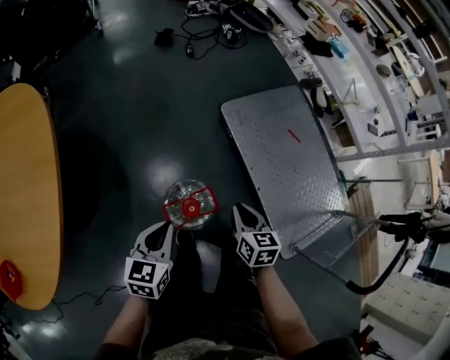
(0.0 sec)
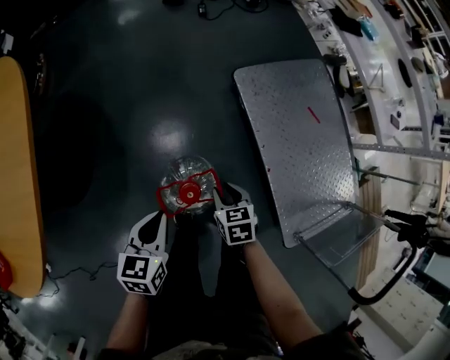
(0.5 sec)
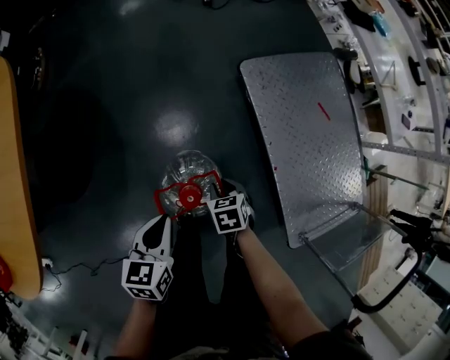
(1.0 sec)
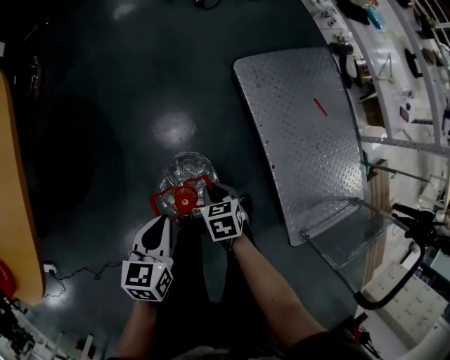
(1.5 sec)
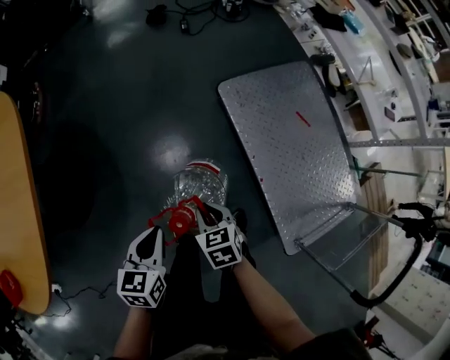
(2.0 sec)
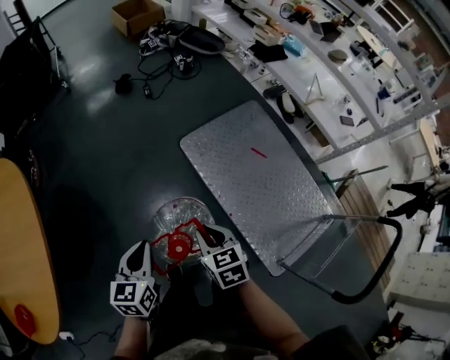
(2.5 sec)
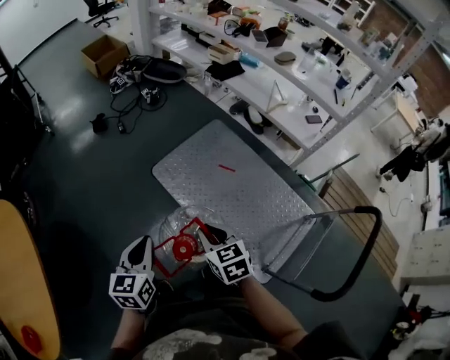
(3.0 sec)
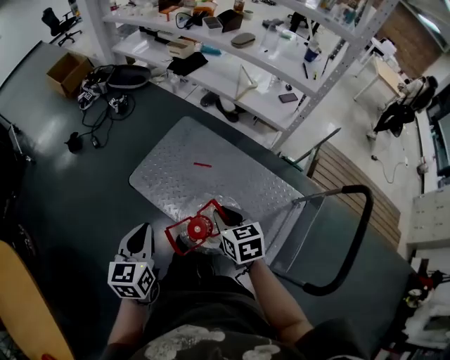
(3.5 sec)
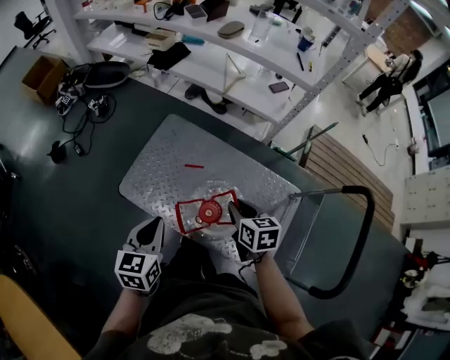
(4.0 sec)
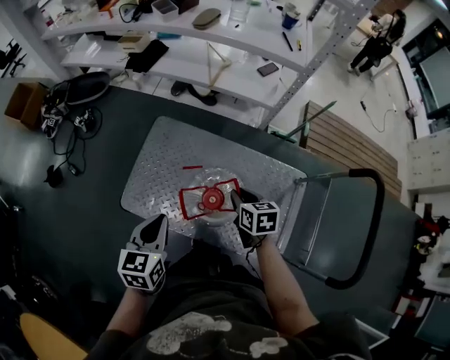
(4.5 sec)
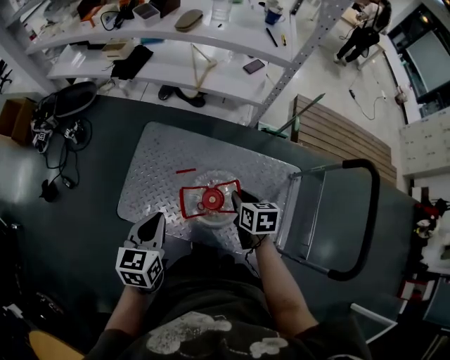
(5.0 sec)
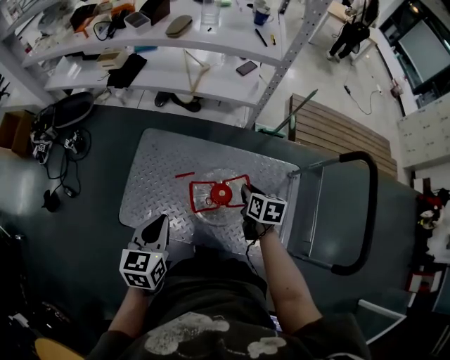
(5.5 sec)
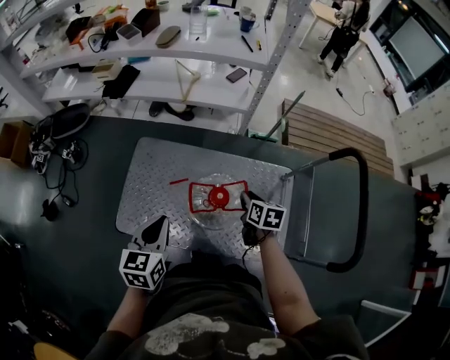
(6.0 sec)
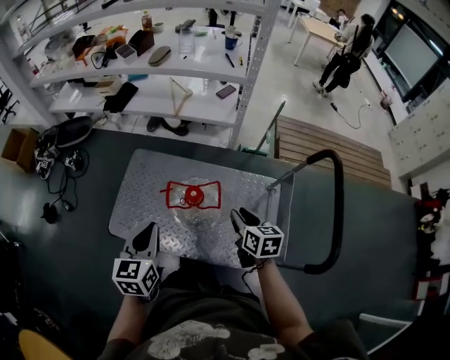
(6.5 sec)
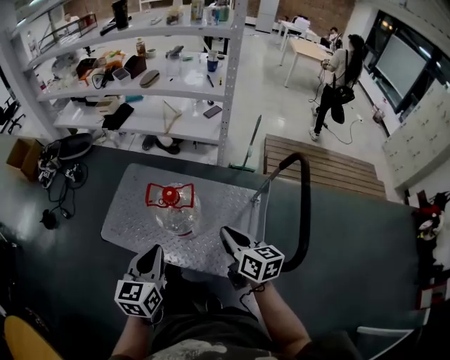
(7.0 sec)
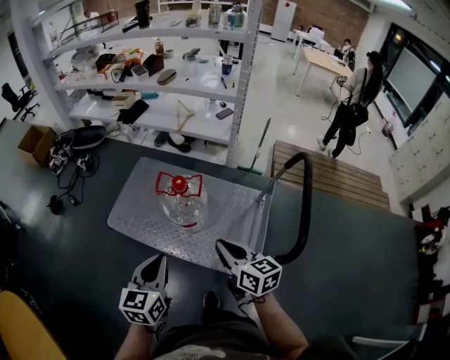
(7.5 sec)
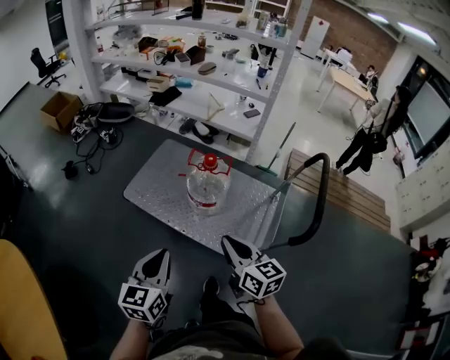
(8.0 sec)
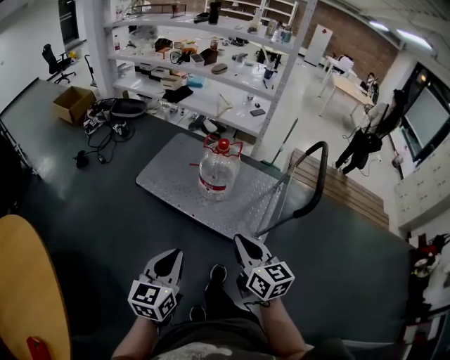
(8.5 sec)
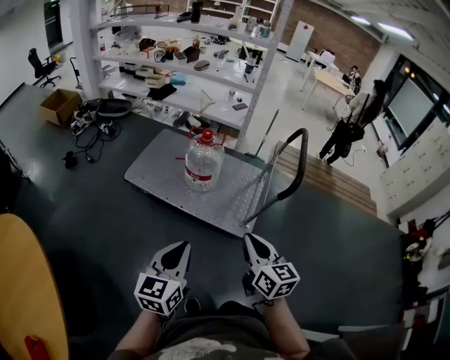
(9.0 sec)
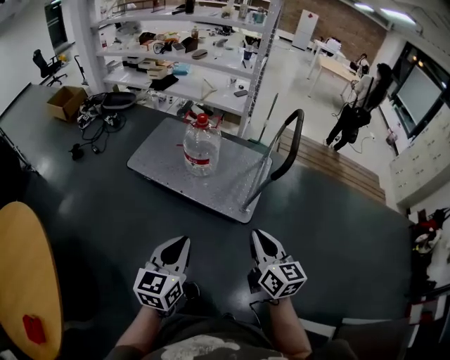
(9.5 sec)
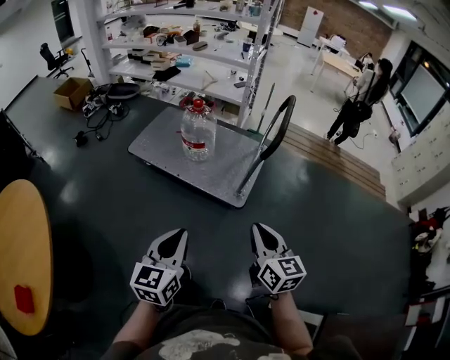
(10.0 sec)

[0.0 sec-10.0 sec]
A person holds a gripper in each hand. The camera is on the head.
0.0 sec to 2.0 sec: The left gripper heads downward, covering approximately 5 cm, while the right gripper is displaced downward and to the left by about 10 cm, and rotates roughly 30 degrees.
2.0 sec to 4.0 sec: The pair of grippers is taken approximately 50 cm. The right gripper turns by some 60 degrees. Meanwhile the left gripper turns by approximately 40 degrees.
4.0 sec to 6.0 sec: The left gripper travels forward by some 10 cm. Meanwhile the right gripper travels to the right, downward and forward by about 15 cm, and turns by approximately 30 degrees.
6.0 sec to 8.0 sec: Both grippers are carried backward, approximately 40 cm. The right gripper shifts some 20 cm upward, and points its fingers some 30 degrees further upward; the left gripper rotates about 20 degrees.
8.0 sec to 10.0 sec: Both grippers travel together backward and to the right, some 40 cm.

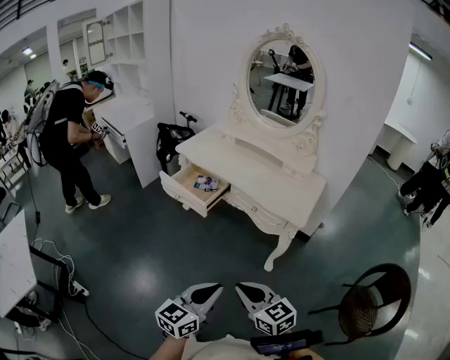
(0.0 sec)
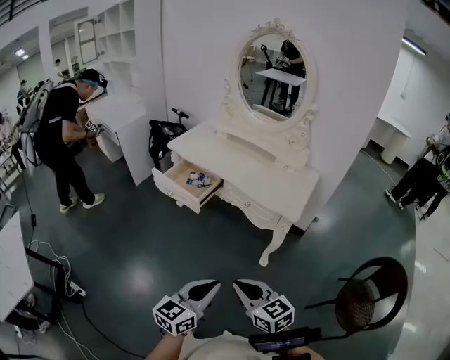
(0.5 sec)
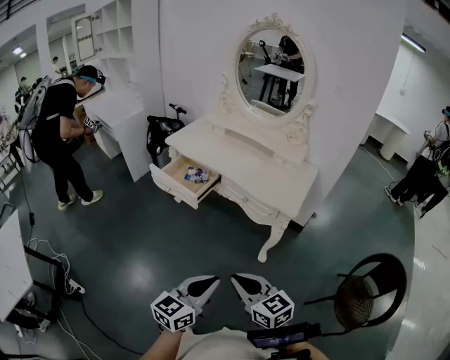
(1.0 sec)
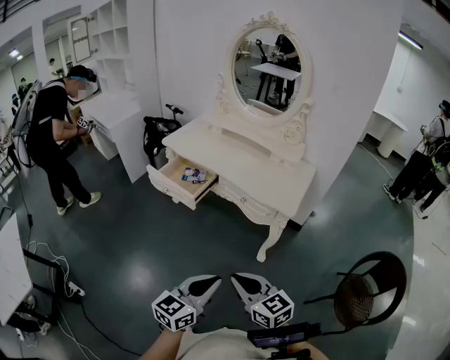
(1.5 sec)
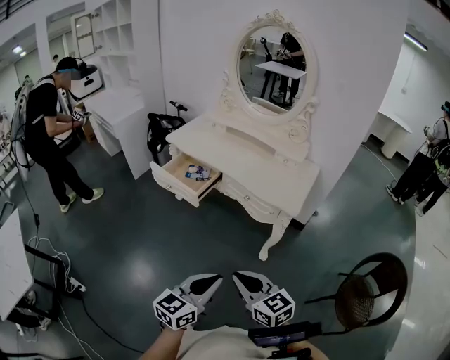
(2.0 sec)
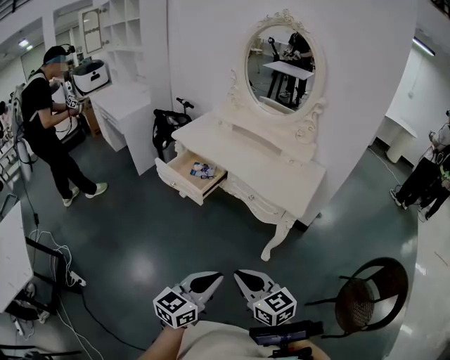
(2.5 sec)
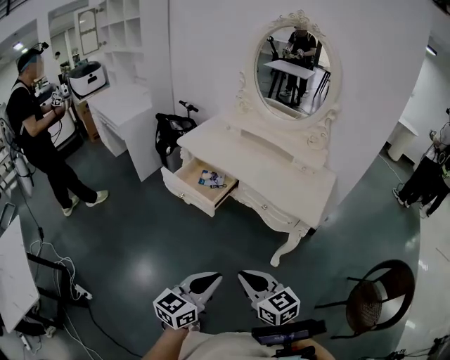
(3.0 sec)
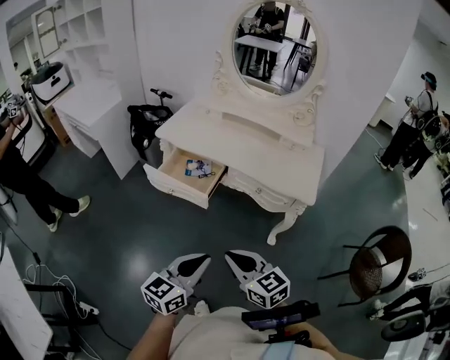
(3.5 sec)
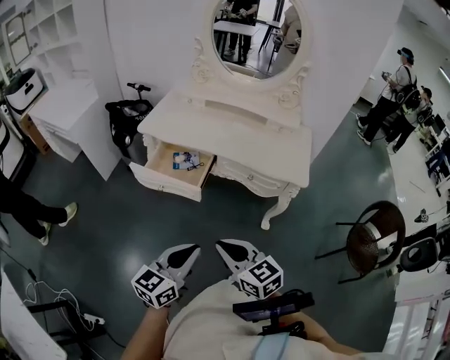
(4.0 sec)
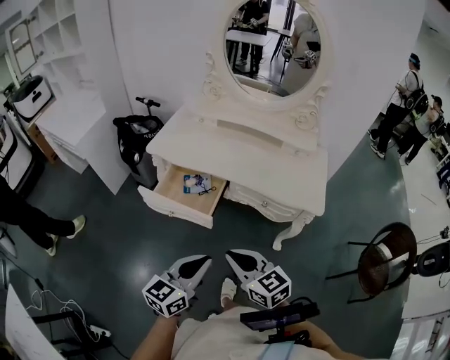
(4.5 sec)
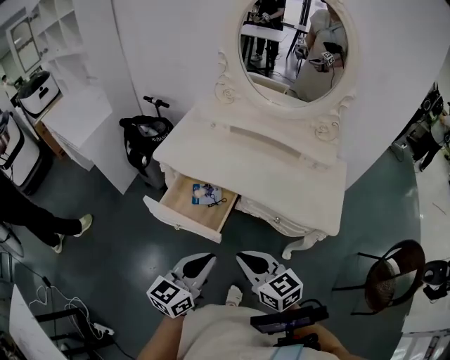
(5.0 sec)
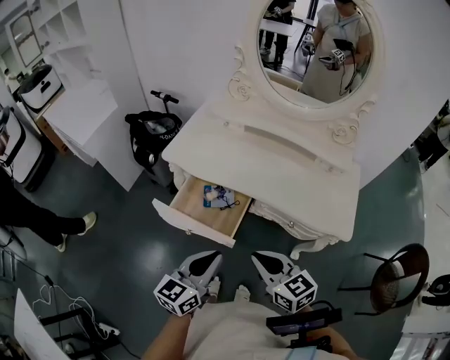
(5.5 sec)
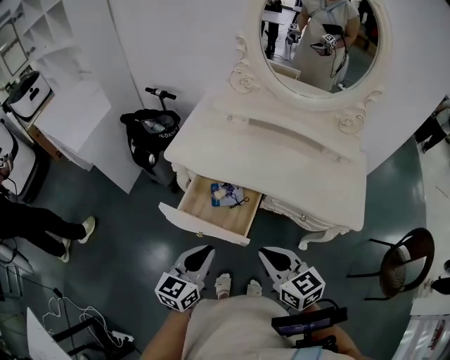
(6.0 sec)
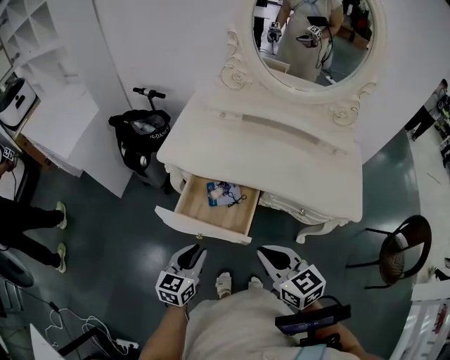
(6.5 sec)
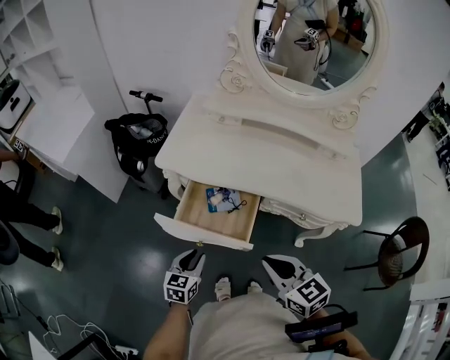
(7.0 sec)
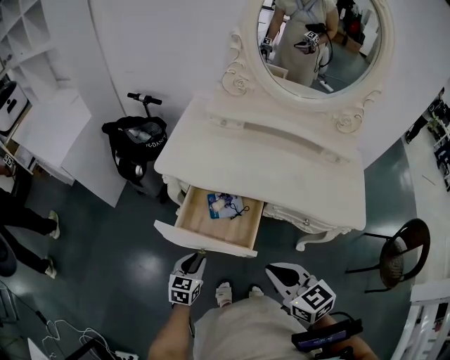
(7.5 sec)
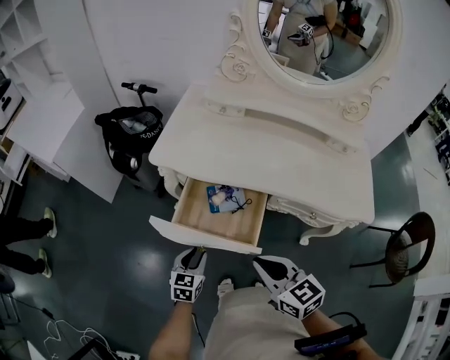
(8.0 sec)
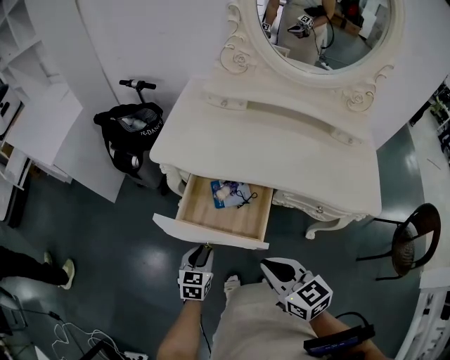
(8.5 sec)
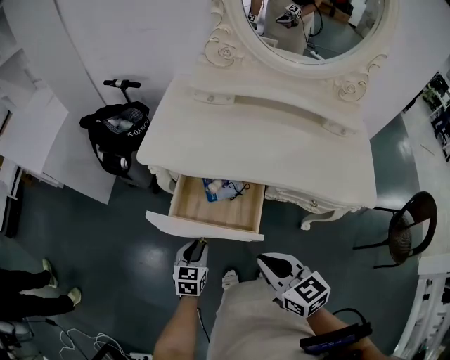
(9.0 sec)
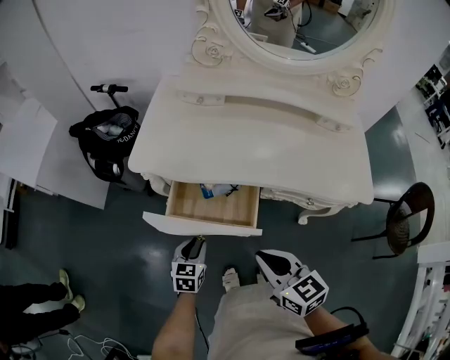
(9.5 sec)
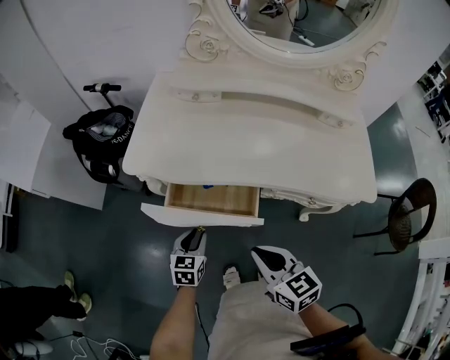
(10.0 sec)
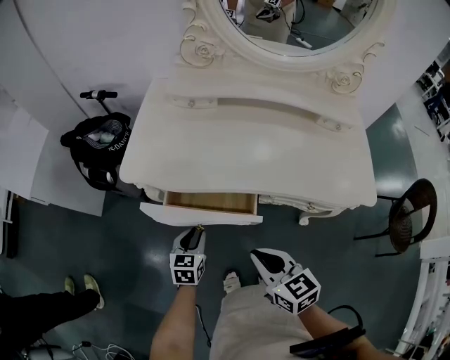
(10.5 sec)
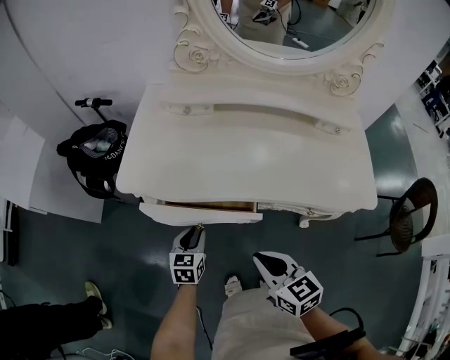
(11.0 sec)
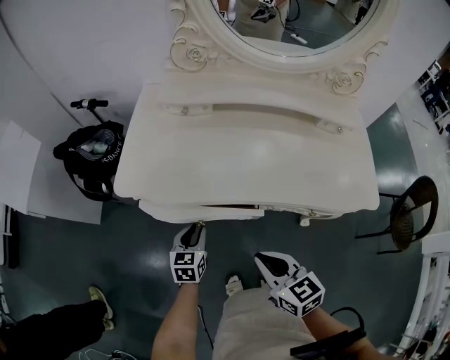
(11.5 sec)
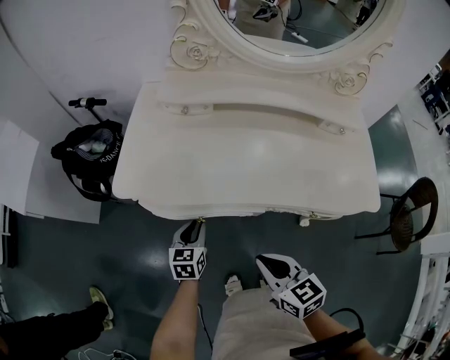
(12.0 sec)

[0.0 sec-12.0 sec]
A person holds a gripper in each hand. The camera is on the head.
0.0 sec to 2.0 sec: The grippers move only a little.
2.0 sec to 4.0 sec: Both grippers travel together to the left and forward, roughly 25 cm.
4.0 sec to 6.0 sec: The right gripper shifts some 25 cm forward. The left gripper moves forward and to the left, roughly 30 cm.
6.0 sec to 8.0 sec: The left gripper travels downward by roughly 25 cm, changes its angle by roughly 20 degrees, and opens. Meanwhile the right gripper heads downward and to the left, covering some 10 cm.
8.0 sec to 10.0 sec: The left gripper goes roughly 10 cm forward, while the right gripper moves forward, about 5 cm.
10.0 sec to 12.0 sec: The right gripper moves about 5 cm. Meanwhile the left gripper is displaced forward by approximately 10 cm.

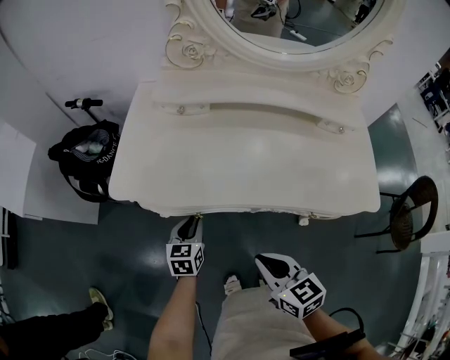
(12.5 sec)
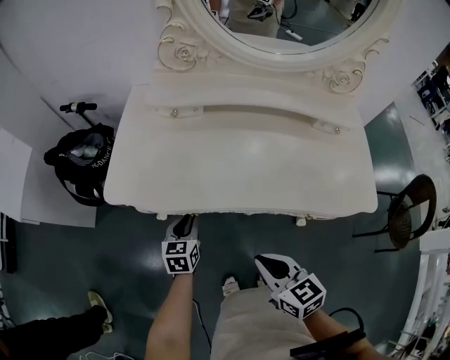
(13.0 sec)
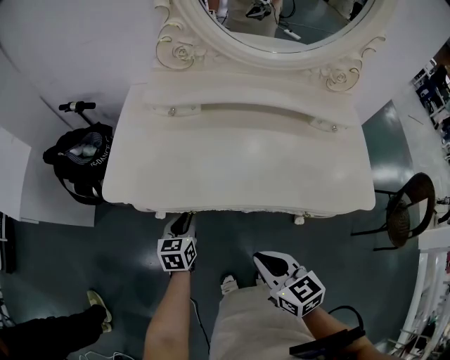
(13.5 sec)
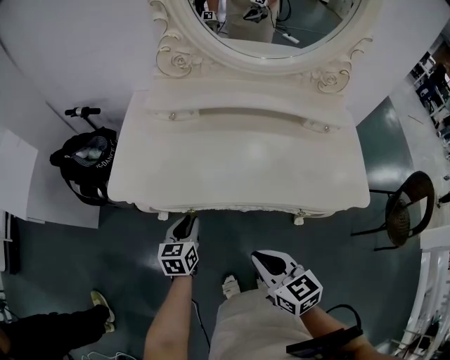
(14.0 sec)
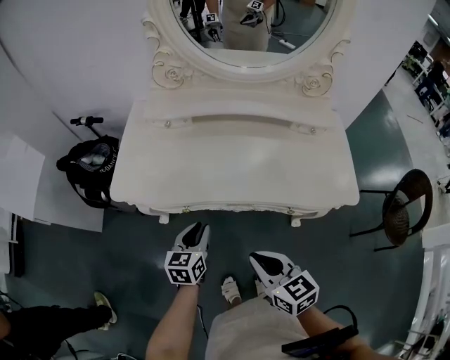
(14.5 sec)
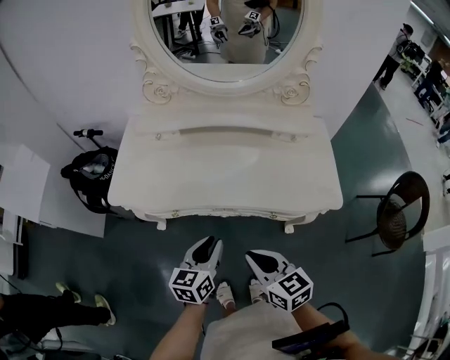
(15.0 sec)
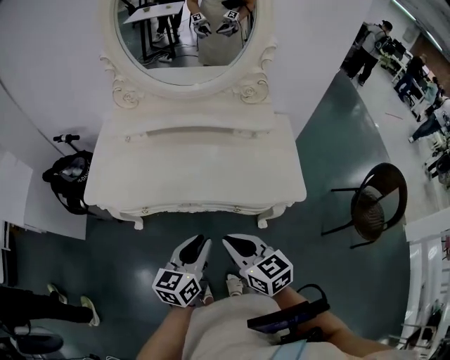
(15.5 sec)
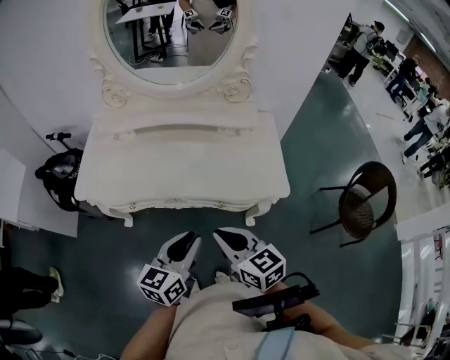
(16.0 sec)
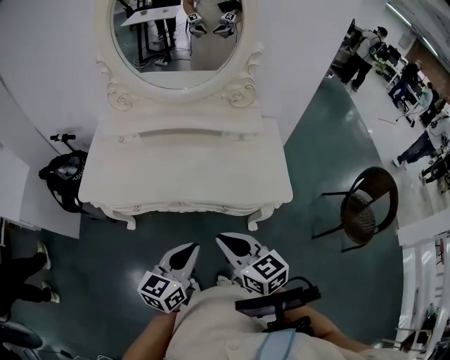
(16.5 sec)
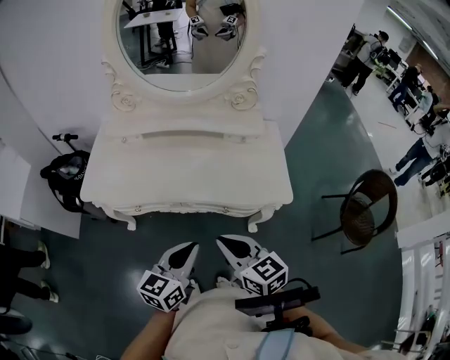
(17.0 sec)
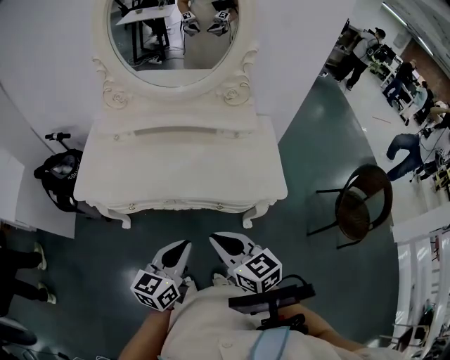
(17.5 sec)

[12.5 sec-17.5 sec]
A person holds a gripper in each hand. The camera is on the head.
12.5 sec to 15.0 sec: The right gripper goes about 15 cm to the right, upward and backward. The left gripper shifts approximately 30 cm upward, to the right and backward.
15.0 sec to 17.5 sec: The left gripper travels upward, to the right and backward by roughly 15 cm, while the right gripper is displaced upward and to the right by some 10 cm.
